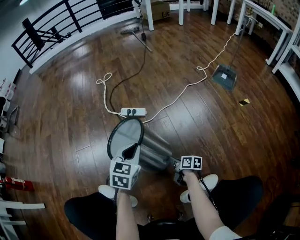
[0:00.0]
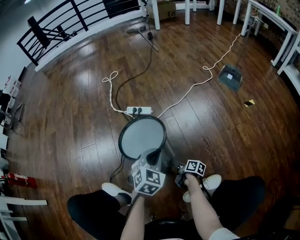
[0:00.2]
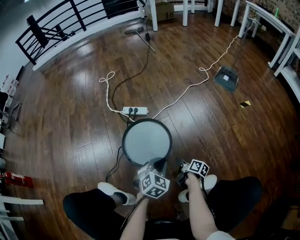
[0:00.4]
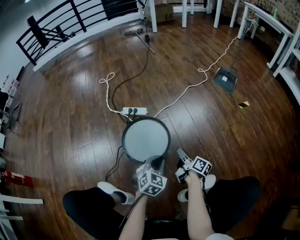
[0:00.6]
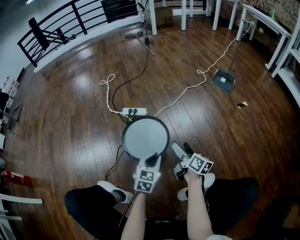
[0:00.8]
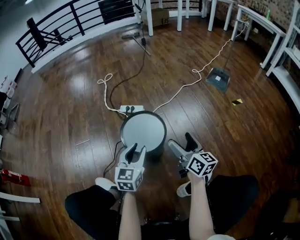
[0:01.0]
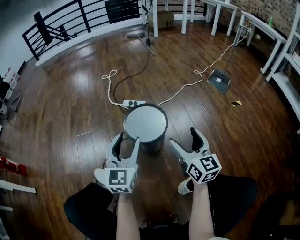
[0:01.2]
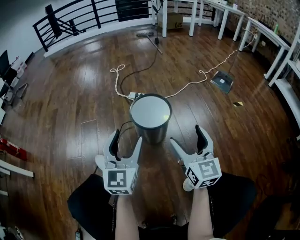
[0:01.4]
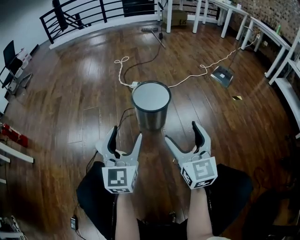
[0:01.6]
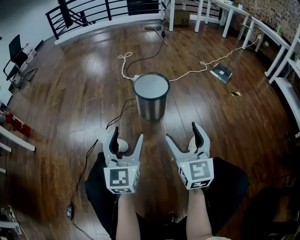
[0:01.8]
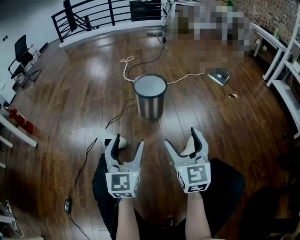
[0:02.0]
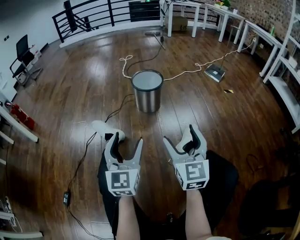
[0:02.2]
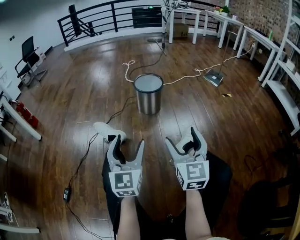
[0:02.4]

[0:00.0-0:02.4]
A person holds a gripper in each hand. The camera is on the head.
0:00.0 to 0:01.2: The right gripper travels upward by roughly 35 cm, rotates some 60 degrees, and opens up. The left gripper heads upward and backward, covering approximately 15 cm, turns by some 30 degrees, and opens up.
0:01.2 to 0:02.4: Both grippers are carried backward, roughly 40 cm.

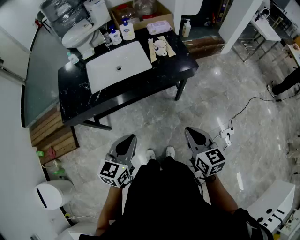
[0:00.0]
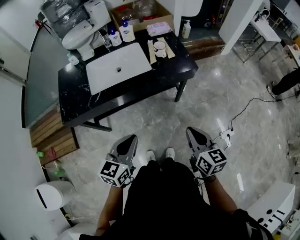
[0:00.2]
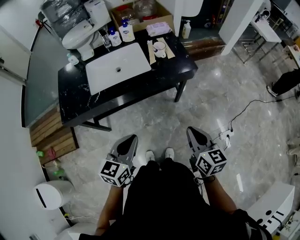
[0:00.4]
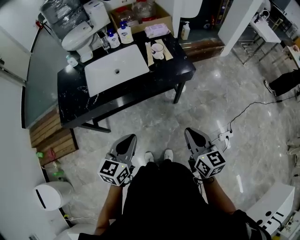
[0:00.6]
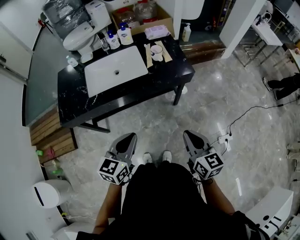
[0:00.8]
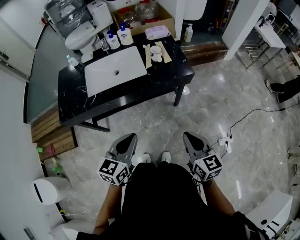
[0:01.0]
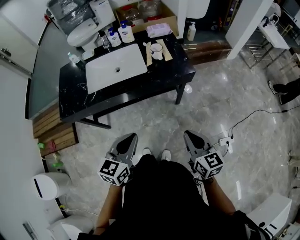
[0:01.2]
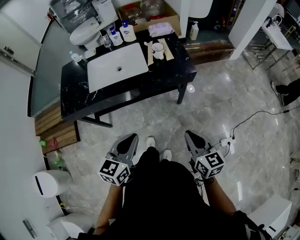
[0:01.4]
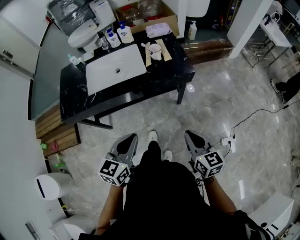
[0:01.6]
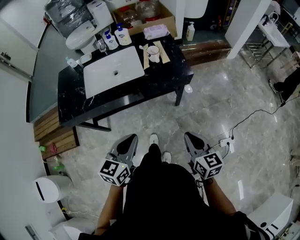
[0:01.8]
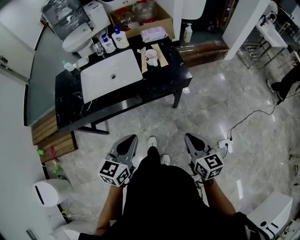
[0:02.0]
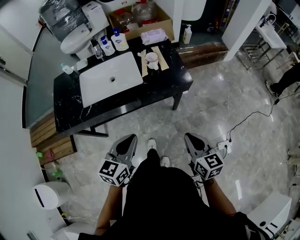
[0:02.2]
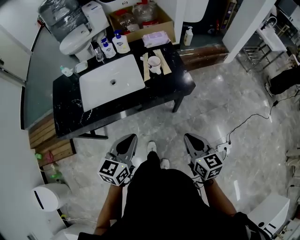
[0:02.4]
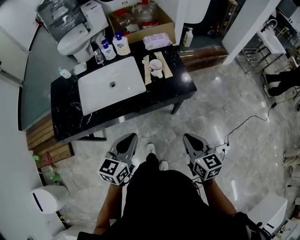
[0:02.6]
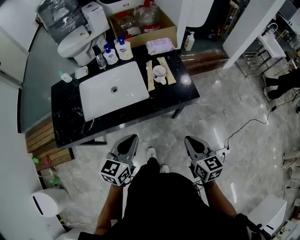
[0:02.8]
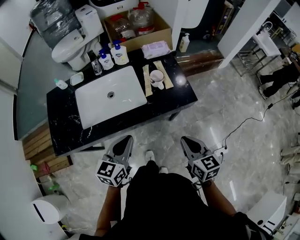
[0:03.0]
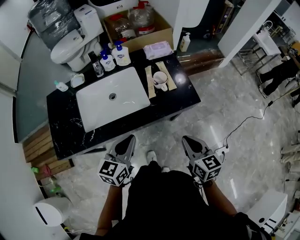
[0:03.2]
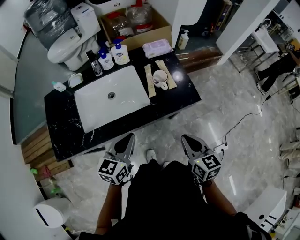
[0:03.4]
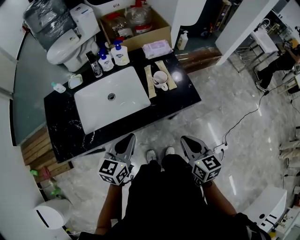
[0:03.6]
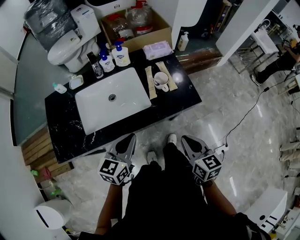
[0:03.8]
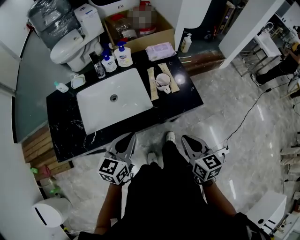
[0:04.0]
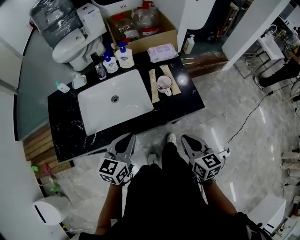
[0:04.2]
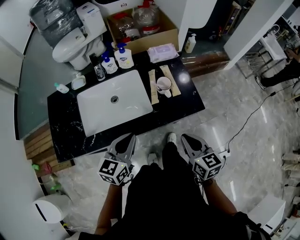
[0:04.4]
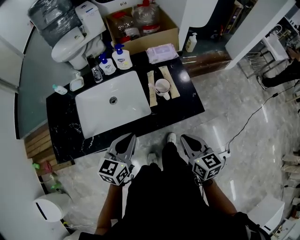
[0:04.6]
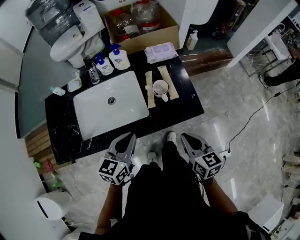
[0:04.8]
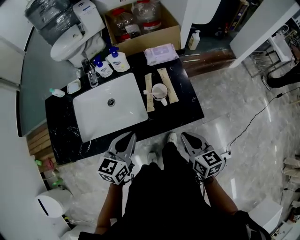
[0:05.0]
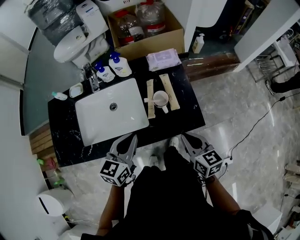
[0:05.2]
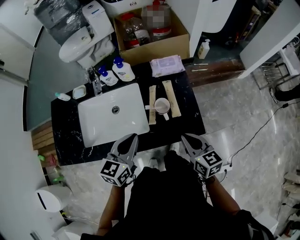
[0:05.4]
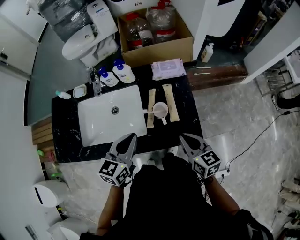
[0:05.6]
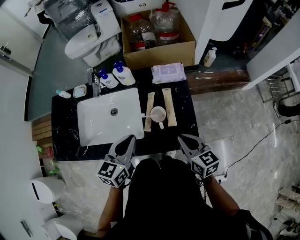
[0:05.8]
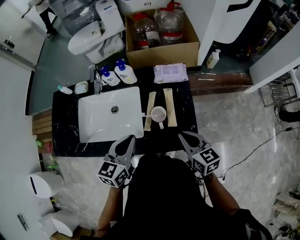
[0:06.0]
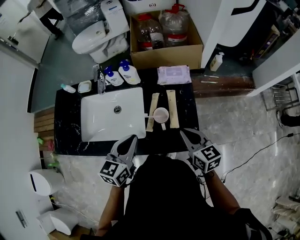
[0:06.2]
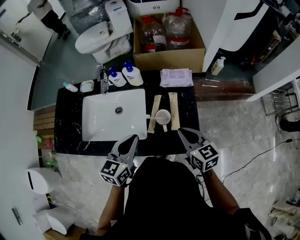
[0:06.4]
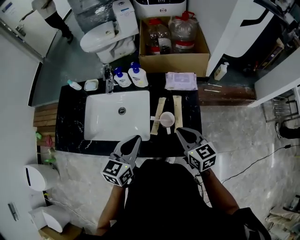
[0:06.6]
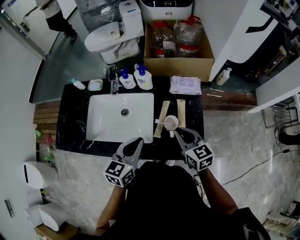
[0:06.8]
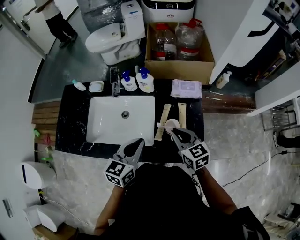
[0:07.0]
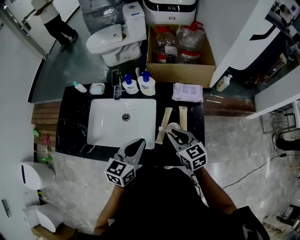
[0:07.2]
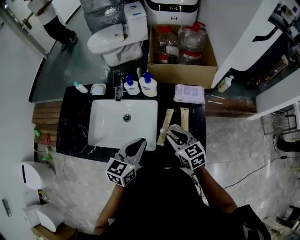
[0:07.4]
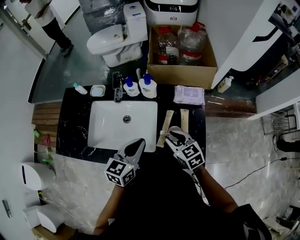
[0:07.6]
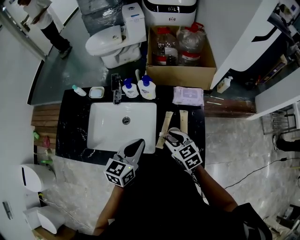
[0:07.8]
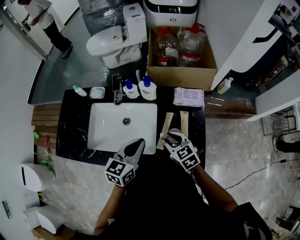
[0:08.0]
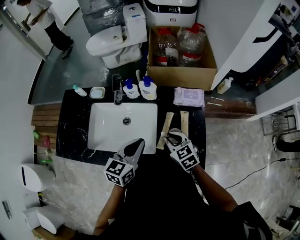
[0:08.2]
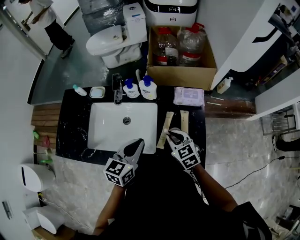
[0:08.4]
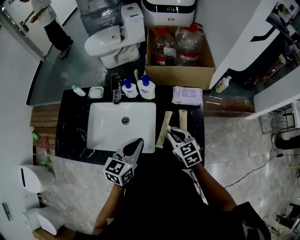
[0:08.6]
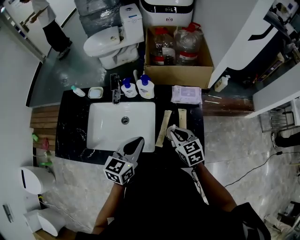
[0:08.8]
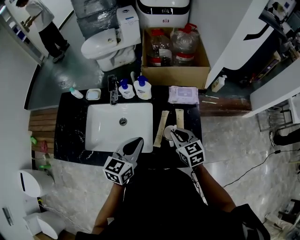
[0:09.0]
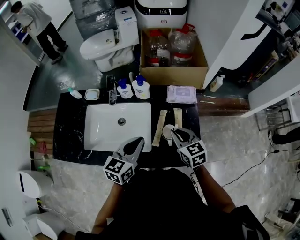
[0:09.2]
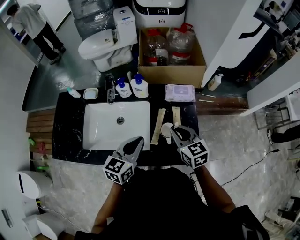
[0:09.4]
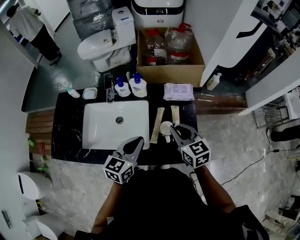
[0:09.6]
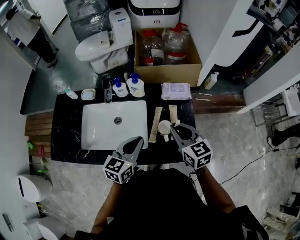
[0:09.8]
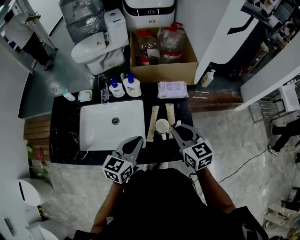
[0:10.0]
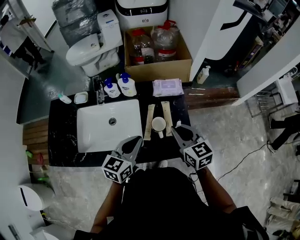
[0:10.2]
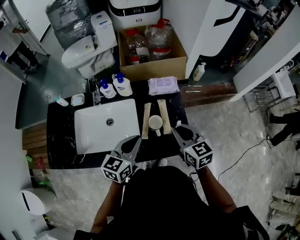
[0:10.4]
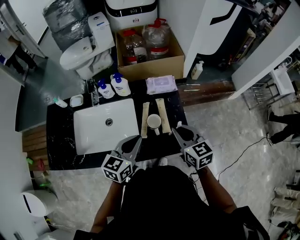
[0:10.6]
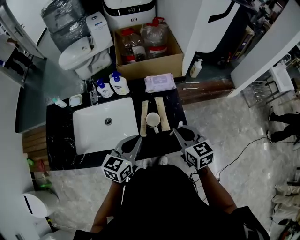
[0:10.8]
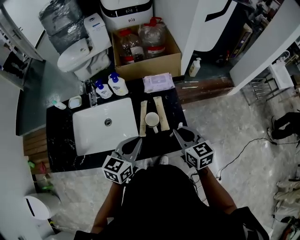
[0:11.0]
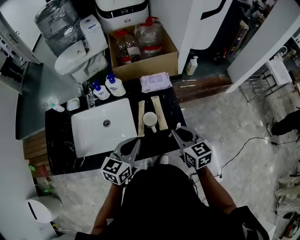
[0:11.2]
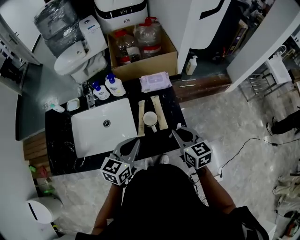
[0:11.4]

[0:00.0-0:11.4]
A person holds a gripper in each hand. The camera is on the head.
0:00.0 to 0:01.4: Both grippers move to the right, some 10 cm.
0:01.4 to 0:02.8: Both grippers move forward, roughly 15 cm.
0:02.8 to 0:04.2: Both grippers travel together forward, some 10 cm.
0:04.2 to 0:05.6: The right gripper is displaced forward by about 15 cm. Meanwhile the left gripper shifts roughly 15 cm forward and to the right.
0:05.6 to 0:07.2: The right gripper shifts roughly 15 cm forward and to the left, and rotates some 20 degrees.
0:07.2 to 0:08.6: The grippers stay close to where they were, moving slightly.
0:08.6 to 0:10.0: The right gripper travels upward and to the right by about 10 cm, while the left gripper moves roughly 5 cm.
0:10.0 to 0:11.4: The right gripper is displaced to the right and backward by roughly 10 cm.

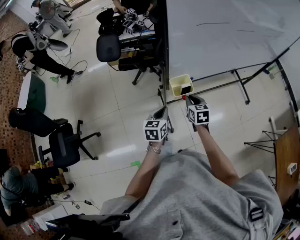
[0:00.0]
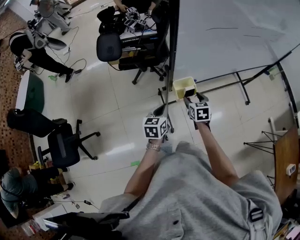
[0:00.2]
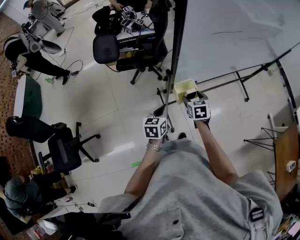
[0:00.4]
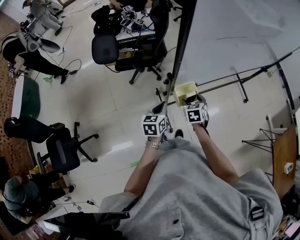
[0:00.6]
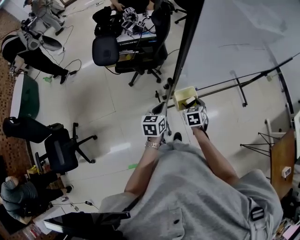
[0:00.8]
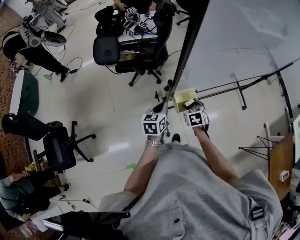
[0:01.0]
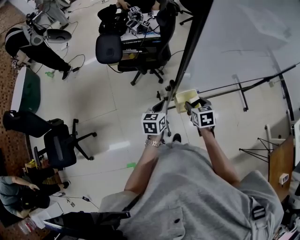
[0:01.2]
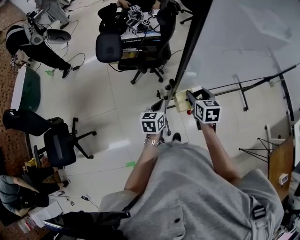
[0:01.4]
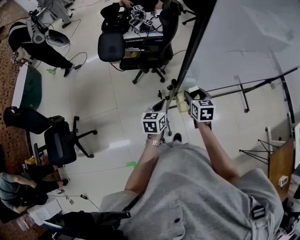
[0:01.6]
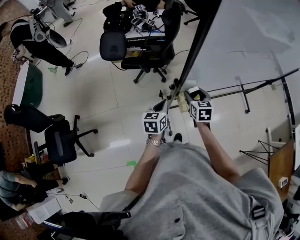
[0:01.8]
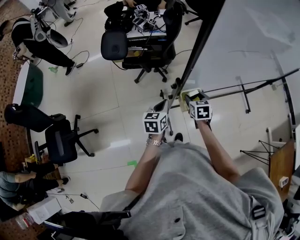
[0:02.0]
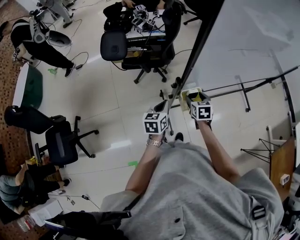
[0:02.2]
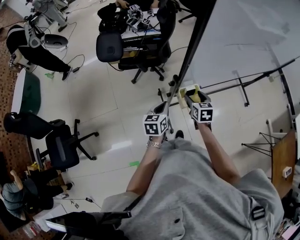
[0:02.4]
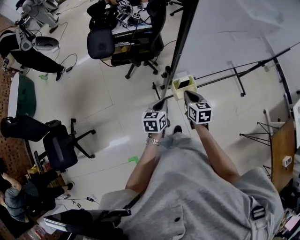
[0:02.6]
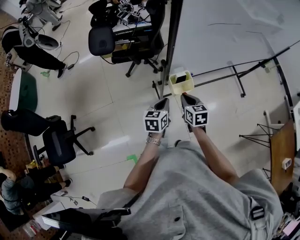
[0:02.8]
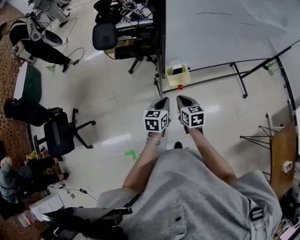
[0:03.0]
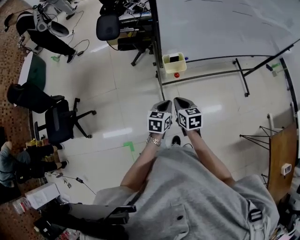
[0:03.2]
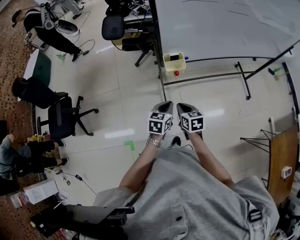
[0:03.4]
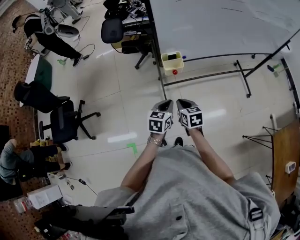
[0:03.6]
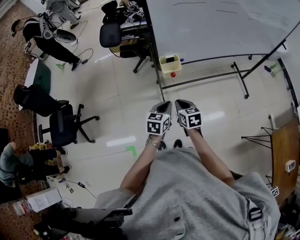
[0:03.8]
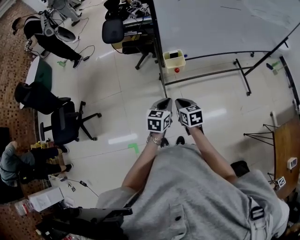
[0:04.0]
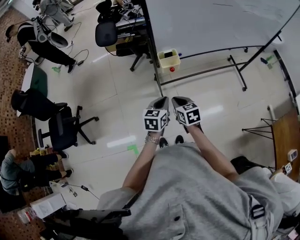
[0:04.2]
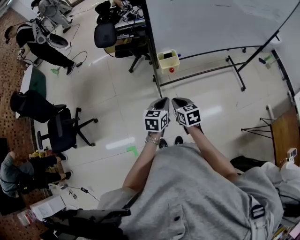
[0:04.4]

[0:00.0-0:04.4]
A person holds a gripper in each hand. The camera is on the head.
0:00.0 to 0:01.4: The right gripper travels forward and upward by some 15 cm, and opens its fingers, while the left gripper shifts approximately 15 cm forward and to the left.
0:01.4 to 0:03.0: The left gripper heads backward and to the right, covering approximately 15 cm. The right gripper is displaced backward and downward by about 20 cm, and closes.
0:03.0 to 0:04.4: Both grippers travel together backward, about 15 cm.

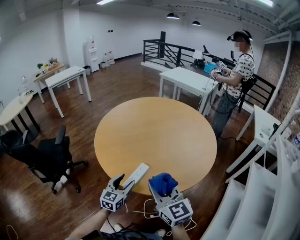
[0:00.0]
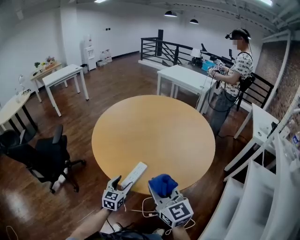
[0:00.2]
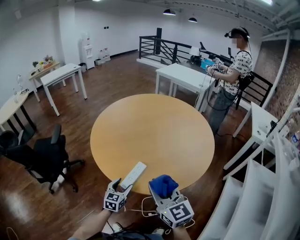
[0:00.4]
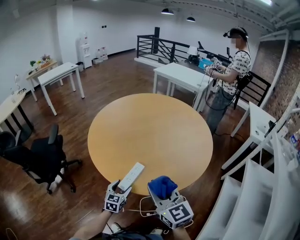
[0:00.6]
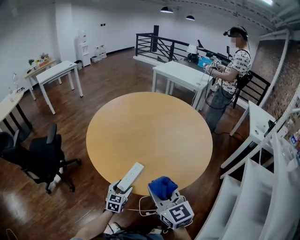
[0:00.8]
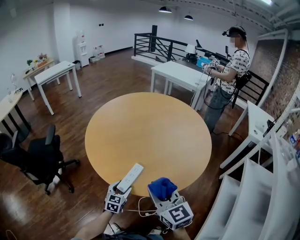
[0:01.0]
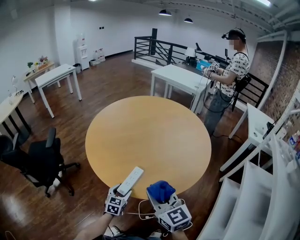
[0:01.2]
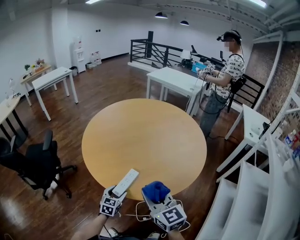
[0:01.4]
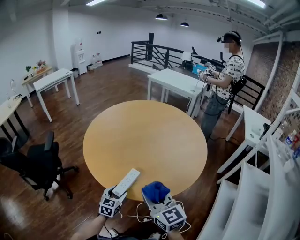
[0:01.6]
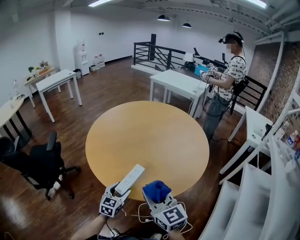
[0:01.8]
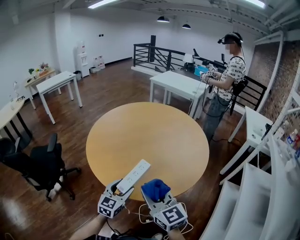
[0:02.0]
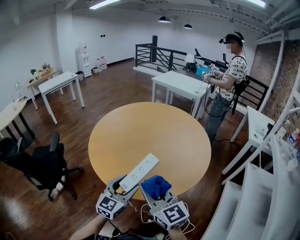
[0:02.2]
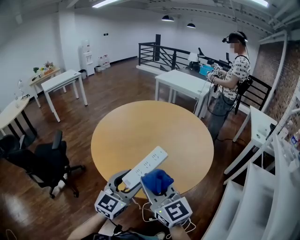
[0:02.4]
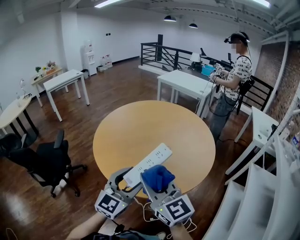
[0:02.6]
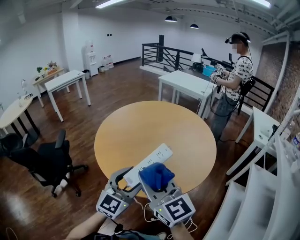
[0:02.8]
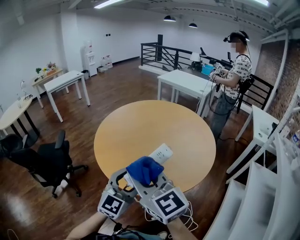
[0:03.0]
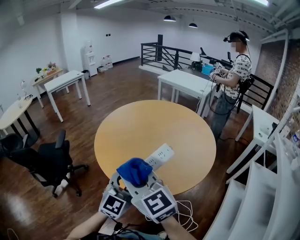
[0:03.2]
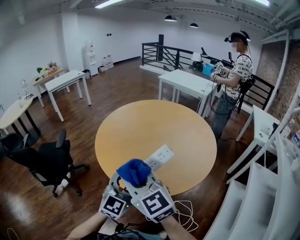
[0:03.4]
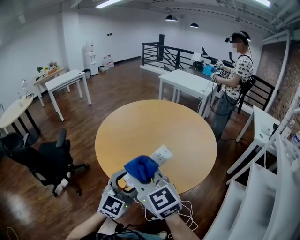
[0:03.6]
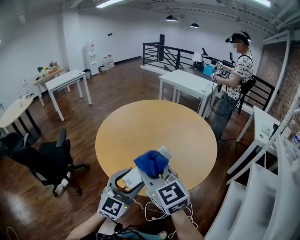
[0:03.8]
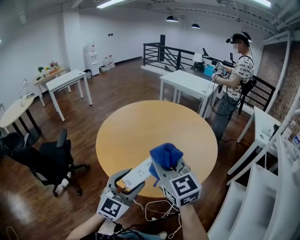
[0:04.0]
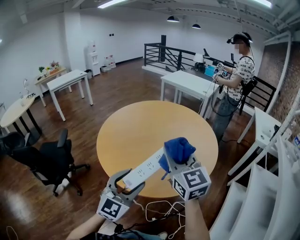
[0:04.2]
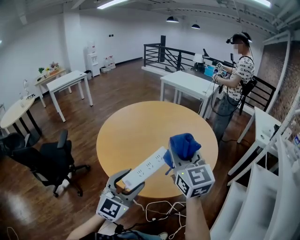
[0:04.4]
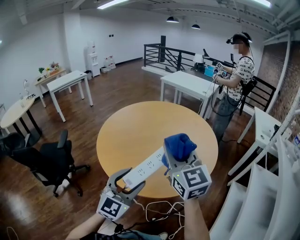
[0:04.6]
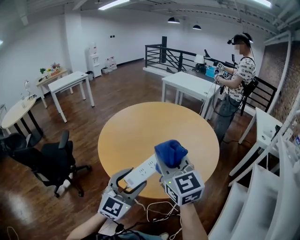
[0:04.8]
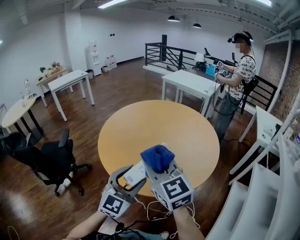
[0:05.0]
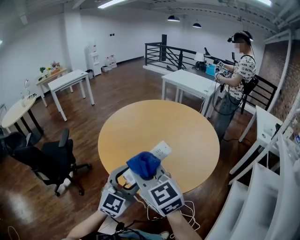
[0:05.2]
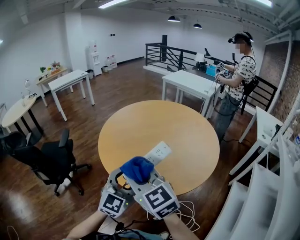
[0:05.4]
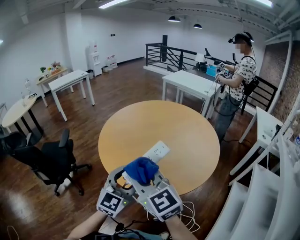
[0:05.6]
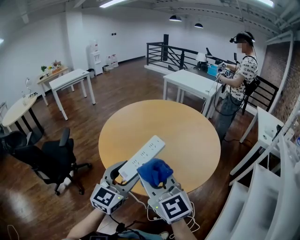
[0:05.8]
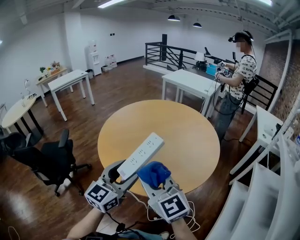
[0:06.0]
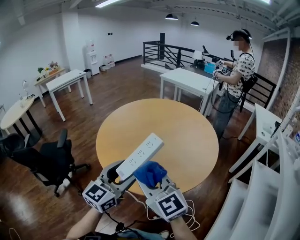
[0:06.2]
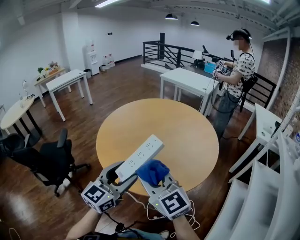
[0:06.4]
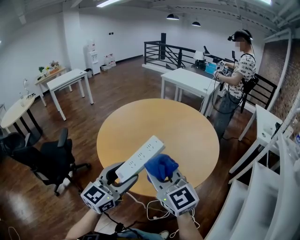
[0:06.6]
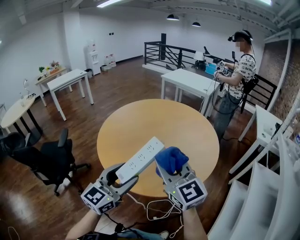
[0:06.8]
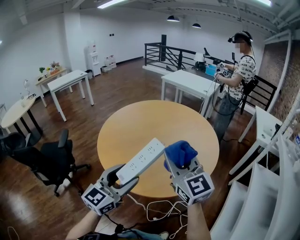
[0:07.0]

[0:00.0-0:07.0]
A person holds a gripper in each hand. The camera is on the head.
0:00.0 to 0:01.4: The left gripper is displaced downward by some 10 cm.
0:01.4 to 0:02.8: The left gripper is displaced upward by roughly 30 cm, and turns by approximately 30 degrees. The right gripper travels upward by some 15 cm.
0:02.8 to 0:04.2: The right gripper goes approximately 10 cm forward and to the right.
0:04.2 to 0:05.6: The right gripper travels to the left and backward by roughly 15 cm, and rotates some 20 degrees.
0:05.6 to 0:07.0: The right gripper shifts about 15 cm to the right and forward.
